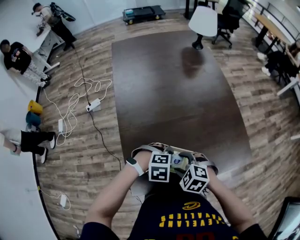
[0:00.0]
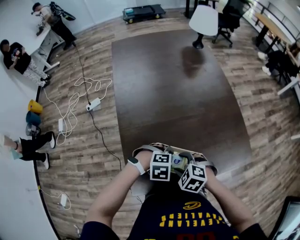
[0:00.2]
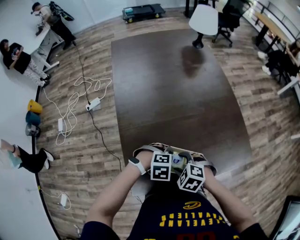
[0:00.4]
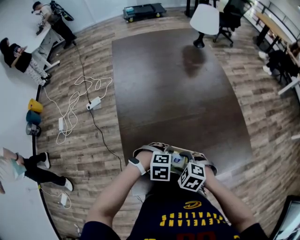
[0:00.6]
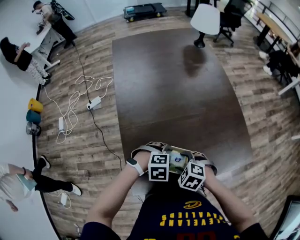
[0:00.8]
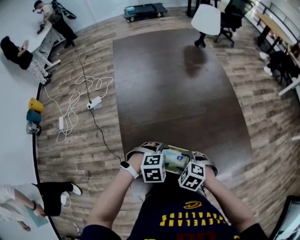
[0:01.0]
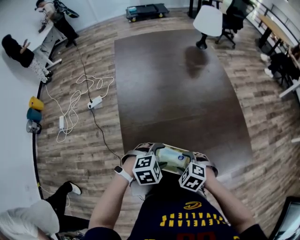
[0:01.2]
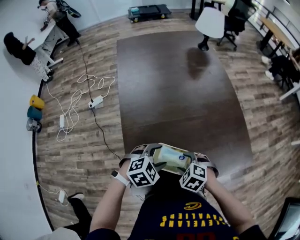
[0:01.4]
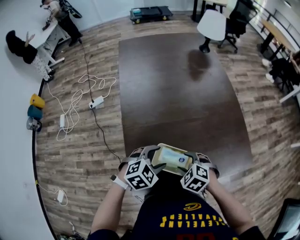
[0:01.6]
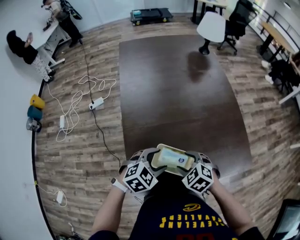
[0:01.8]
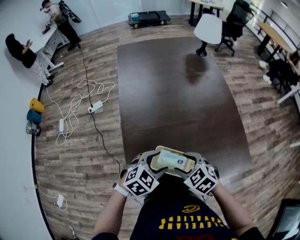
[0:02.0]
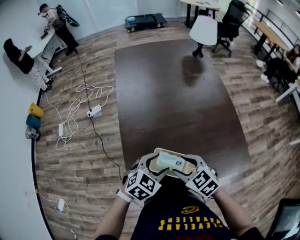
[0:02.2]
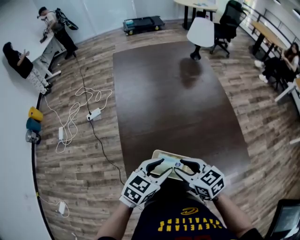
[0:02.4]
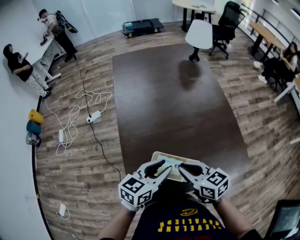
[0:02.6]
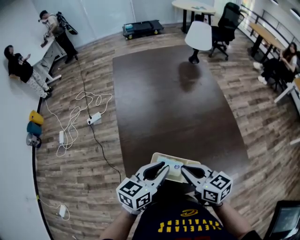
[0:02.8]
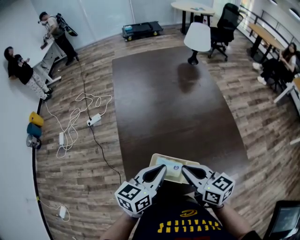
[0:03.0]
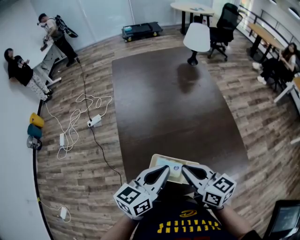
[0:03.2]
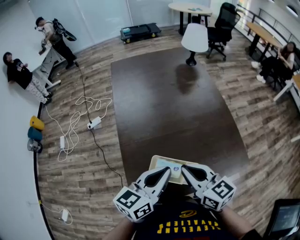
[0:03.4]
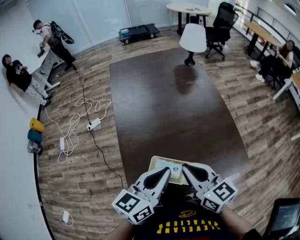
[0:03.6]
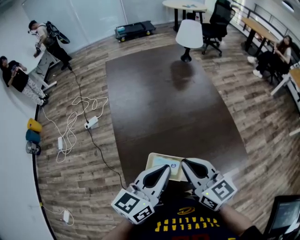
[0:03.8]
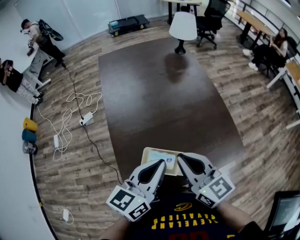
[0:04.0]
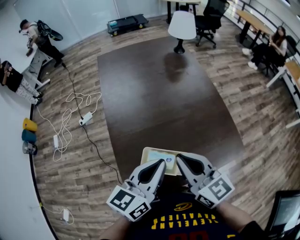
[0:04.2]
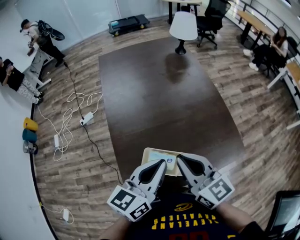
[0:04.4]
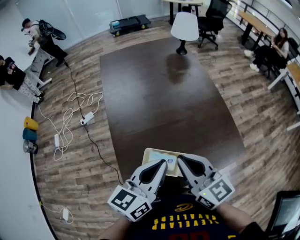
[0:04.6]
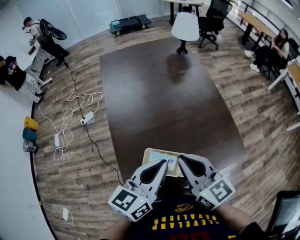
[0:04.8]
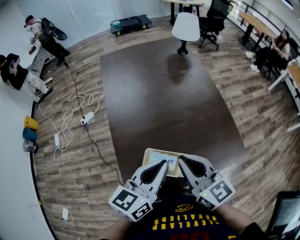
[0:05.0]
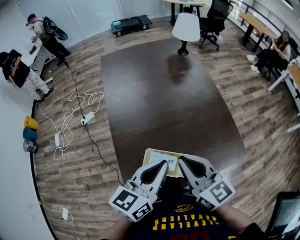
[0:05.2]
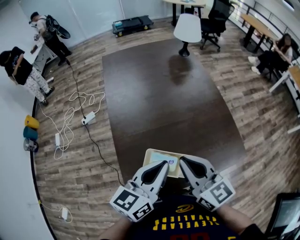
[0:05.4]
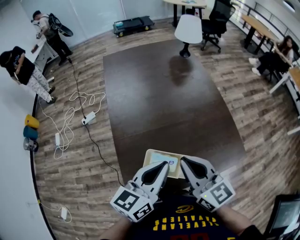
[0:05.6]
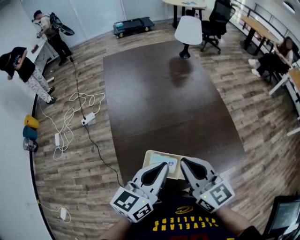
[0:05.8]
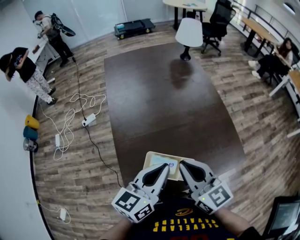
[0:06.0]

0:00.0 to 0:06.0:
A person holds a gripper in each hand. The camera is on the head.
0:00.0 to 0:01.6: The left gripper changes place by roughly 10 cm, and rotates roughly 40 degrees.
0:01.6 to 0:03.0: The two grippers go some 15 cm upward. The right gripper points its fingers approximately 50 degrees further upward, and closes, while the left gripper tips its fingers upward by some 40 degrees, and closes.
0:03.0 to 0:04.4: Both grippers move upward, about 5 cm.
0:04.4 to 0:06.0: The two grippers keep their place.

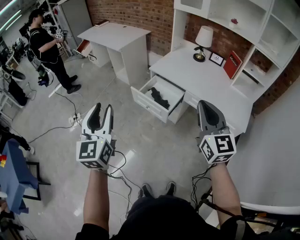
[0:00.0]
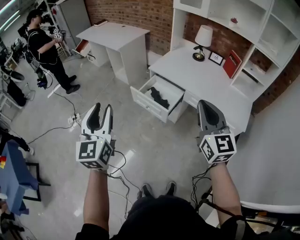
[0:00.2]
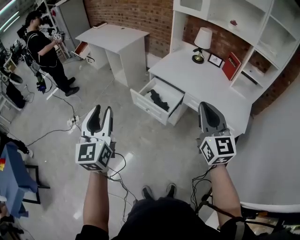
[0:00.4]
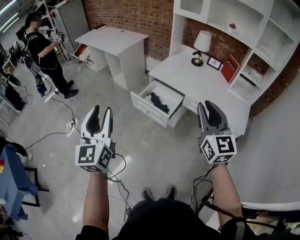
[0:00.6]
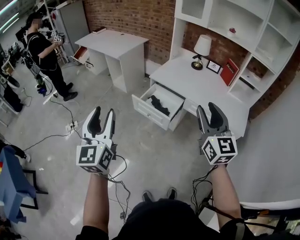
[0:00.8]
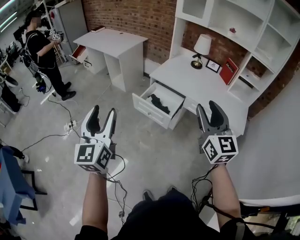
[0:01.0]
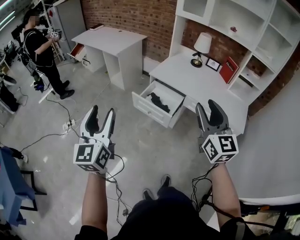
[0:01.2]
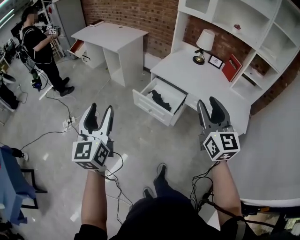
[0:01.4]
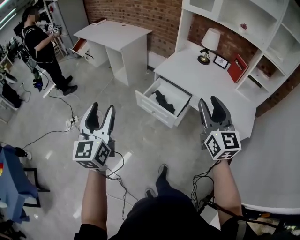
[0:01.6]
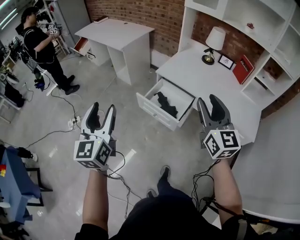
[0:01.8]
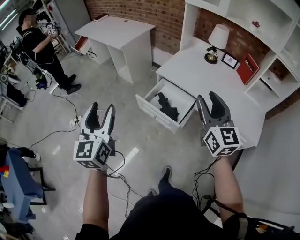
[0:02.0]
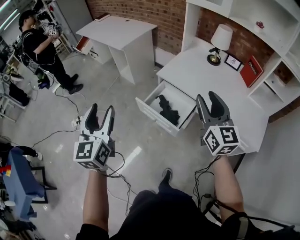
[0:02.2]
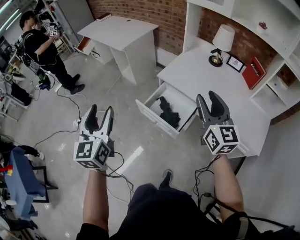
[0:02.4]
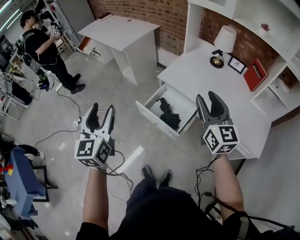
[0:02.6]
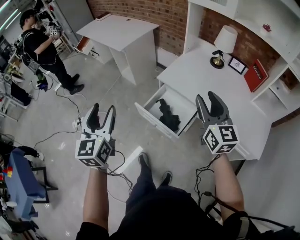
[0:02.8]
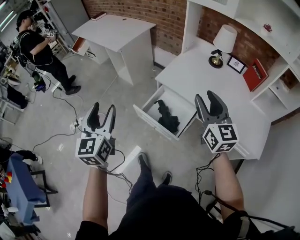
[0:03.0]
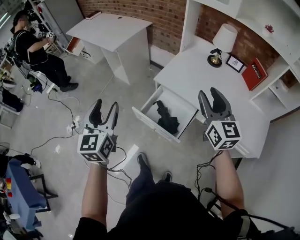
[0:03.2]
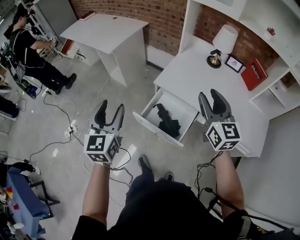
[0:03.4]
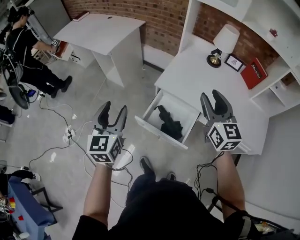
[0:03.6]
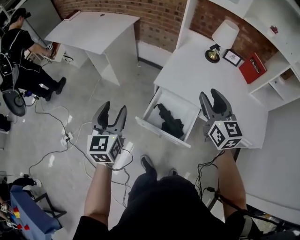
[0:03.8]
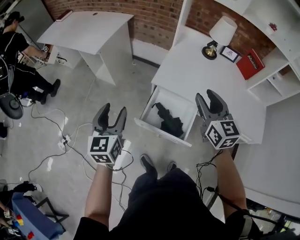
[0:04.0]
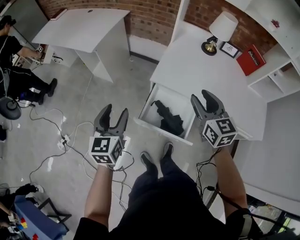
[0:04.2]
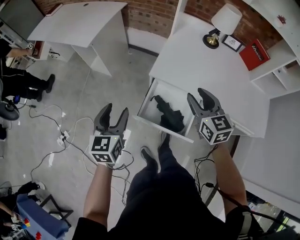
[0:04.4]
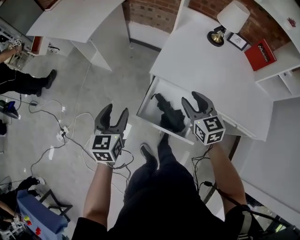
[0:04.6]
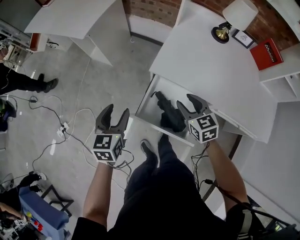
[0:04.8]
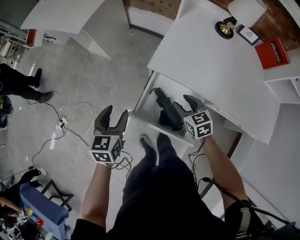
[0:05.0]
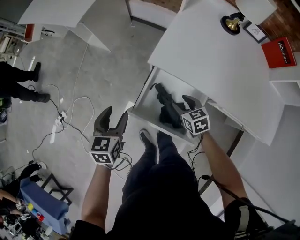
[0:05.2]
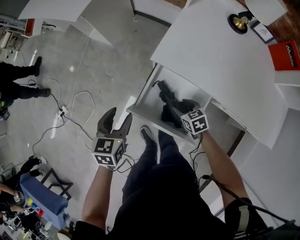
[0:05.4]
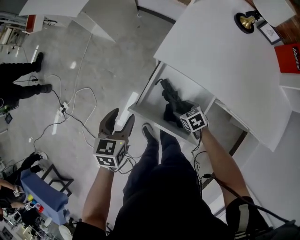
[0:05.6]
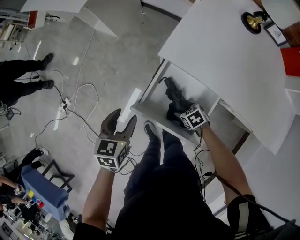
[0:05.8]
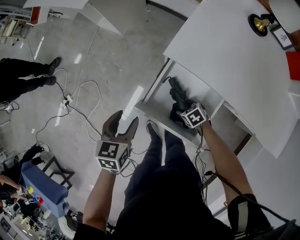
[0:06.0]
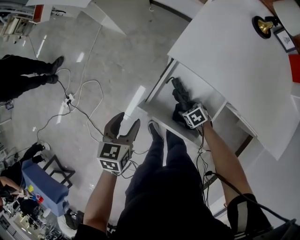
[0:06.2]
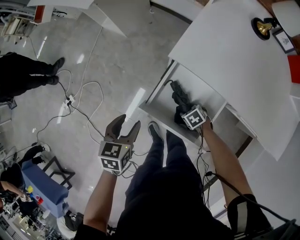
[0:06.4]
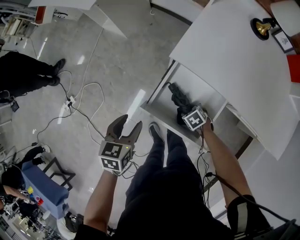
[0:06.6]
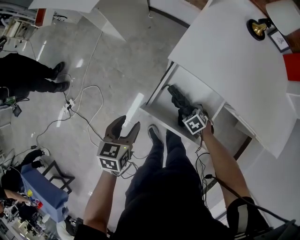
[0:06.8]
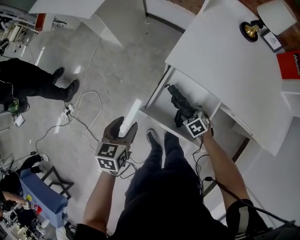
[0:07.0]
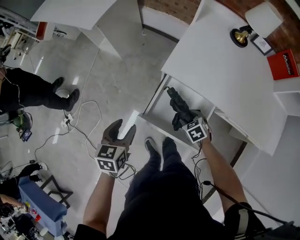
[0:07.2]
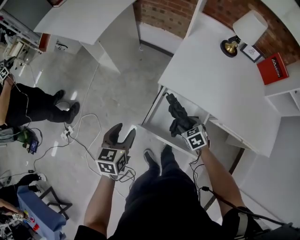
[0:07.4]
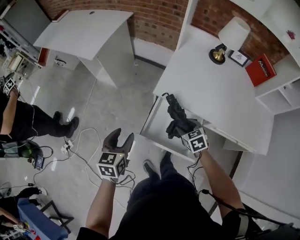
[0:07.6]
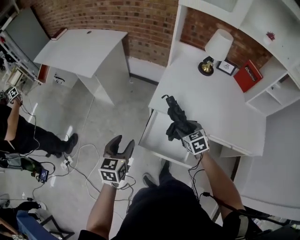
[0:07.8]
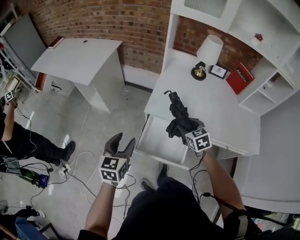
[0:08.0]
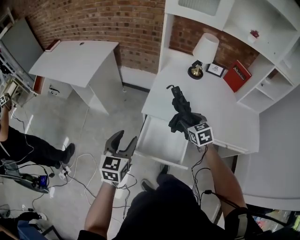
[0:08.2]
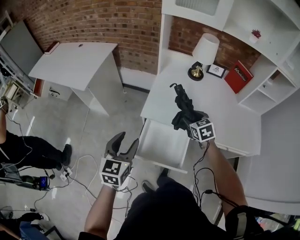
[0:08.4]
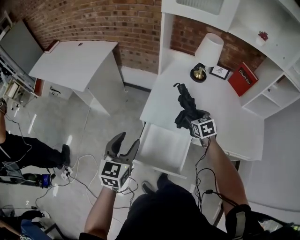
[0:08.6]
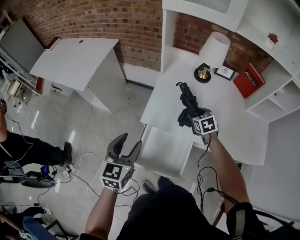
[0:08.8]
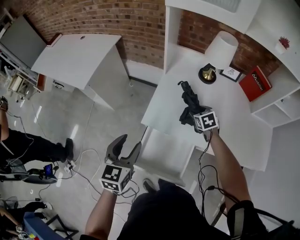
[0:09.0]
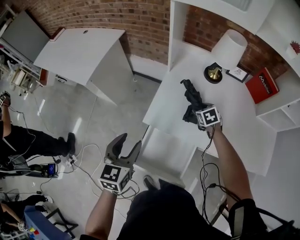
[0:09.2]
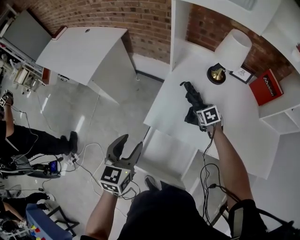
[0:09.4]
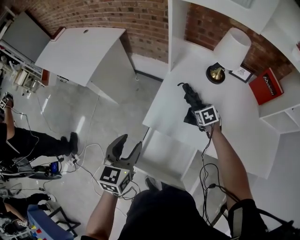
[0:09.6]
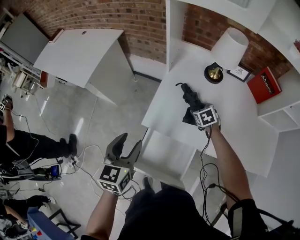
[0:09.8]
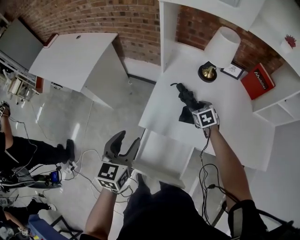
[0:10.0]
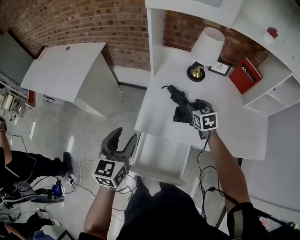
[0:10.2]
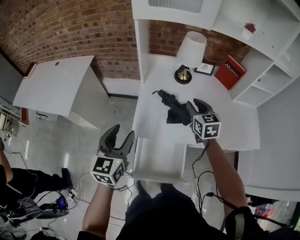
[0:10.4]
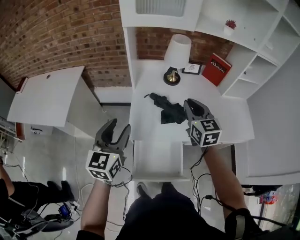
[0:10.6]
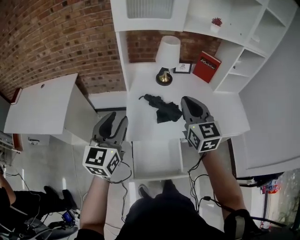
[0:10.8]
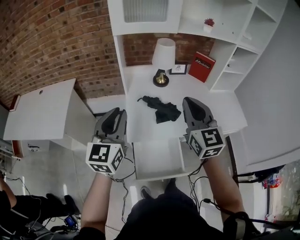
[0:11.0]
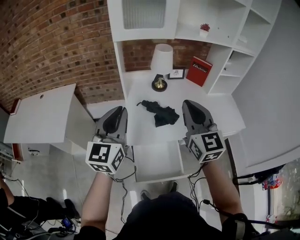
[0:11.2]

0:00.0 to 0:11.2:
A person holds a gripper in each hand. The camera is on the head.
0:00.0 to 0:01.6: The left gripper shifts about 10 cm to the left and forward. The right gripper goes about 10 cm forward and to the left, and opens.
0:01.6 to 0:03.2: Both grippers travel together forward, about 25 cm.
0:03.2 to 0:04.8: Both grippers travel together downward and forward, about 30 cm. The left gripper swivels approximately 30 degrees. Meanwhile the right gripper tips its fingers downward by some 30 degrees.
0:04.8 to 0:06.4: The left gripper shifts approximately 10 cm downward, and changes its angle by some 20 degrees. Meanwhile the right gripper moves downward, some 30 cm, and points its fingers roughly 40 degrees further downward.
0:06.4 to 0:08.0: The right gripper travels upward by some 35 cm, and tips its fingers upward by approximately 30 degrees. Meanwhile the left gripper goes approximately 20 cm upward, and turns by some 30 degrees.
0:08.0 to 0:09.6: The right gripper goes approximately 30 cm forward, downward and to the right, while the left gripper heads forward and to the right, covering approximately 20 cm.
0:09.6 to 0:11.2: The right gripper heads upward, covering roughly 40 cm, tilts its fingers roughly 60 degrees upward, and closes up; the left gripper moves upward, some 20 cm, swivels approximately 40 degrees, and closes its fingers.

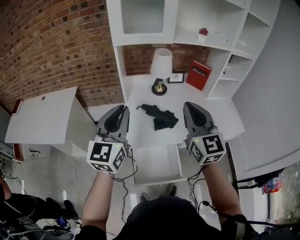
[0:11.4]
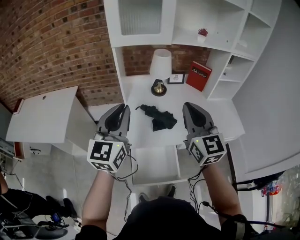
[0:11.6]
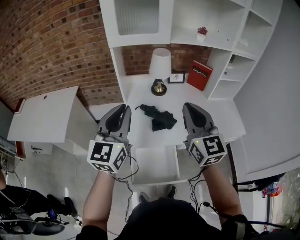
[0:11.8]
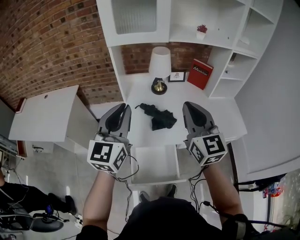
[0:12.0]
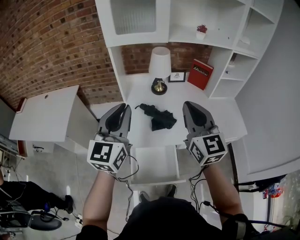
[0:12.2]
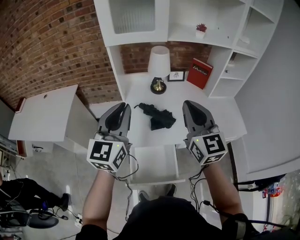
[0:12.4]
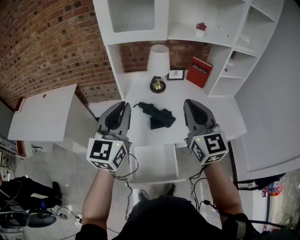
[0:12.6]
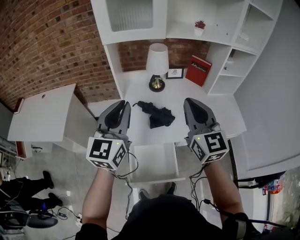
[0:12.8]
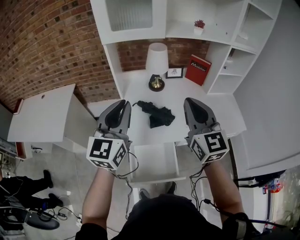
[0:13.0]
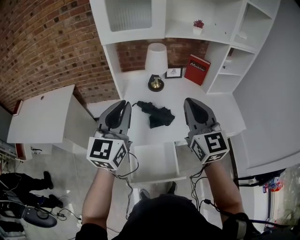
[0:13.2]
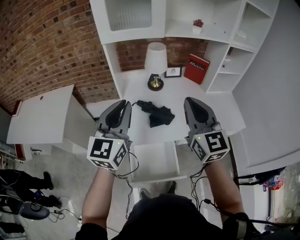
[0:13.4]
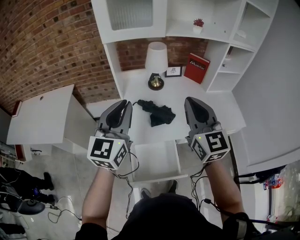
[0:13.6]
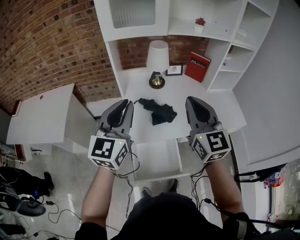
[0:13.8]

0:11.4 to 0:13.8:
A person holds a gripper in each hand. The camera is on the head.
0:11.4 to 0:12.6: The left gripper heads to the right, covering some 5 cm; the right gripper shifts by some 5 cm.
0:12.6 to 0:13.8: The grippers stay close to where they were, moving slightly.

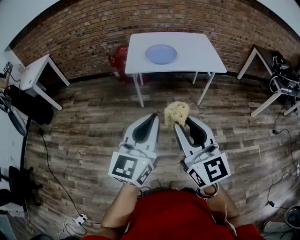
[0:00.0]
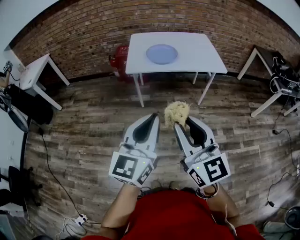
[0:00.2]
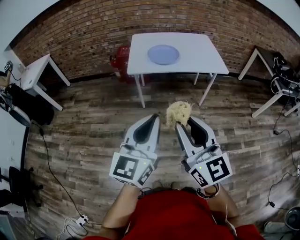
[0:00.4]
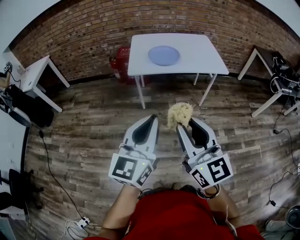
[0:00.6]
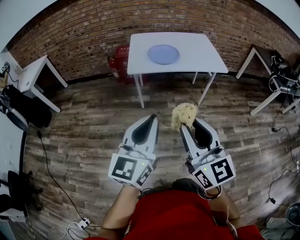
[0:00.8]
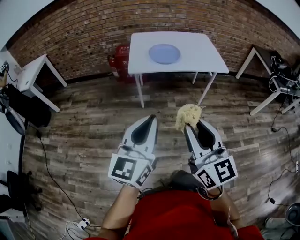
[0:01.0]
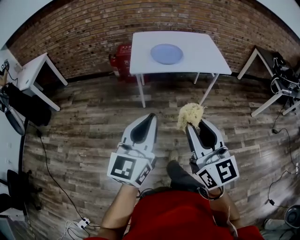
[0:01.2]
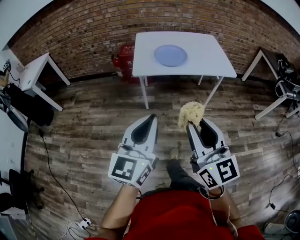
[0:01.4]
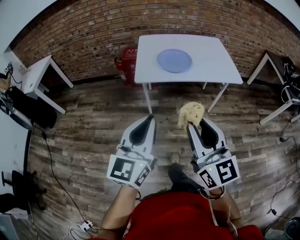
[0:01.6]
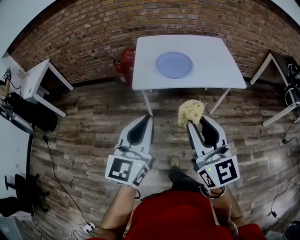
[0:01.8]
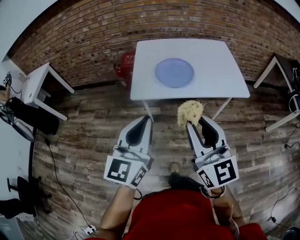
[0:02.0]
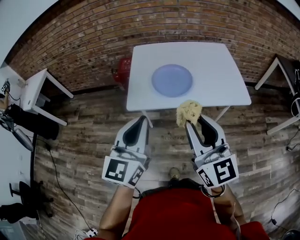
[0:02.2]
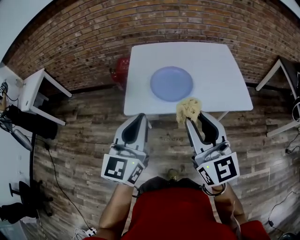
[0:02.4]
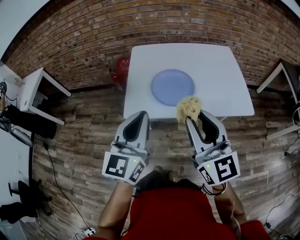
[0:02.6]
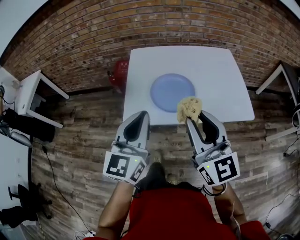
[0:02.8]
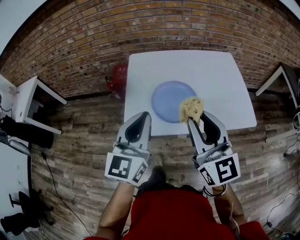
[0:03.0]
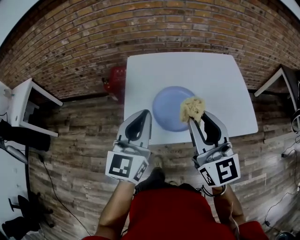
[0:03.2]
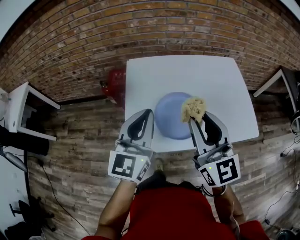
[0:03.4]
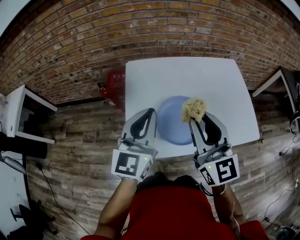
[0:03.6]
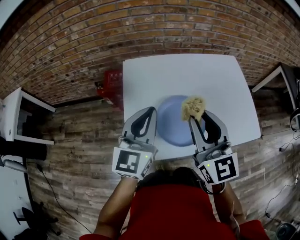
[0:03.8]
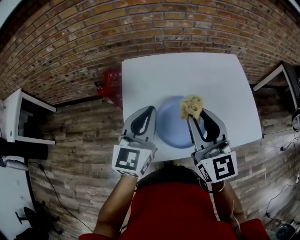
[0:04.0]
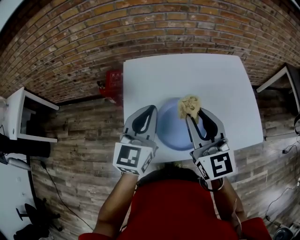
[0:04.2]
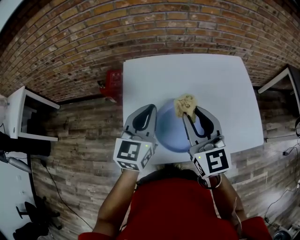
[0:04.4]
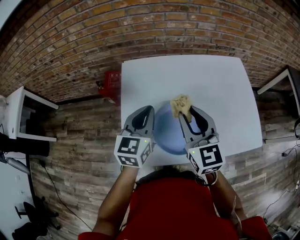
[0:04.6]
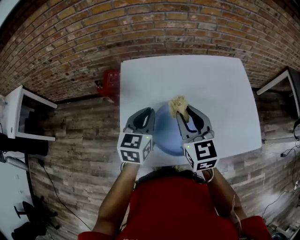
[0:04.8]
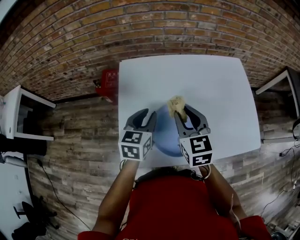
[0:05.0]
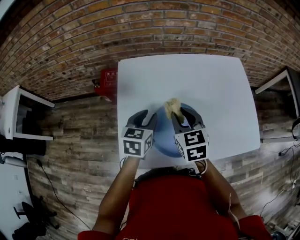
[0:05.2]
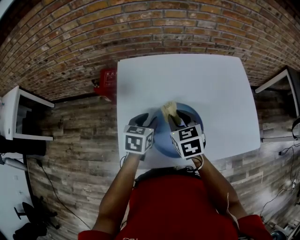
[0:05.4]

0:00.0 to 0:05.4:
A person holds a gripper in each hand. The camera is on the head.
0:00.0 to 0:01.4: The left gripper heads to the left and forward, covering roughly 10 cm. The right gripper goes some 5 cm forward.
0:01.4 to 0:02.8: The two grippers travel together, forward, about 40 cm.
0:02.8 to 0:04.0: Both grippers travel together forward, approximately 25 cm.
0:04.0 to 0:05.4: The left gripper moves downward, about 20 cm, points its fingers roughly 40 degrees further downward, and opens its fingers. The right gripper shifts roughly 20 cm downward and forward, and angles its fingers downward, by roughly 40 degrees.
